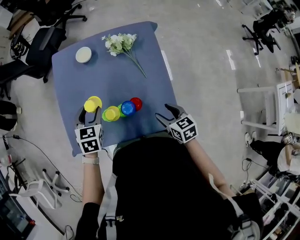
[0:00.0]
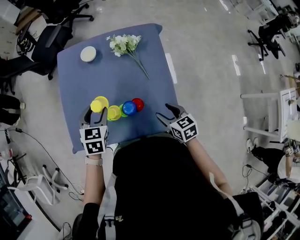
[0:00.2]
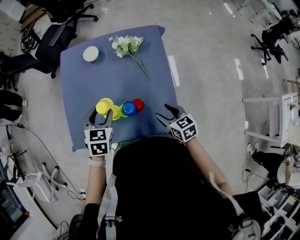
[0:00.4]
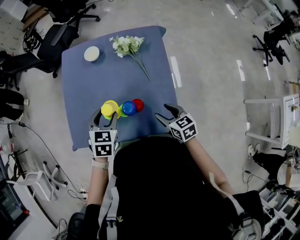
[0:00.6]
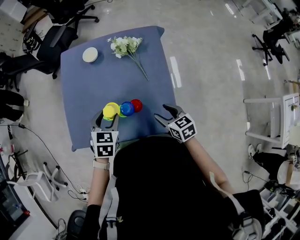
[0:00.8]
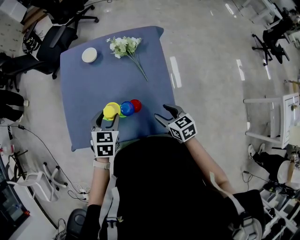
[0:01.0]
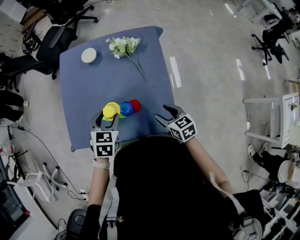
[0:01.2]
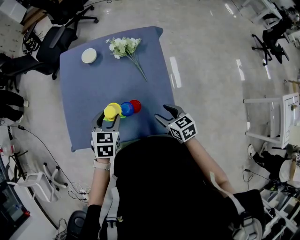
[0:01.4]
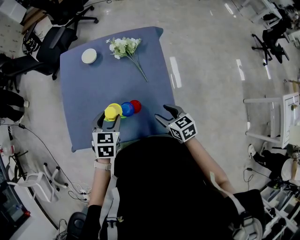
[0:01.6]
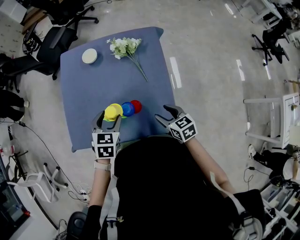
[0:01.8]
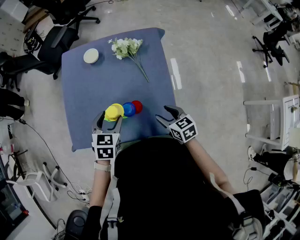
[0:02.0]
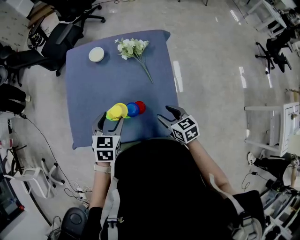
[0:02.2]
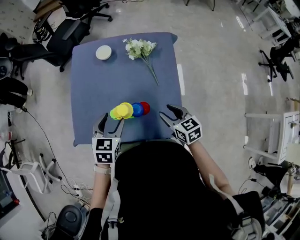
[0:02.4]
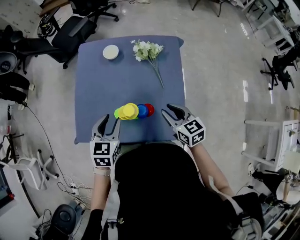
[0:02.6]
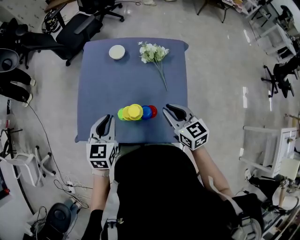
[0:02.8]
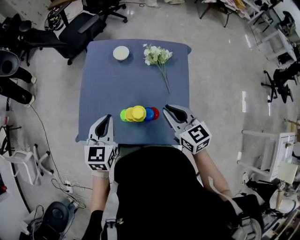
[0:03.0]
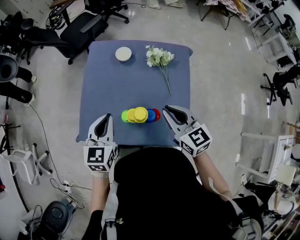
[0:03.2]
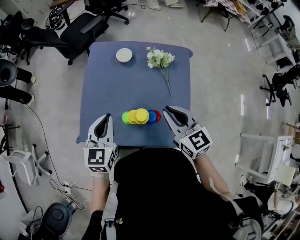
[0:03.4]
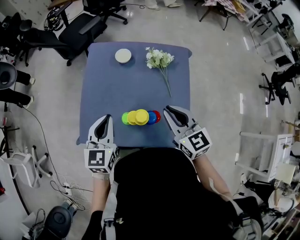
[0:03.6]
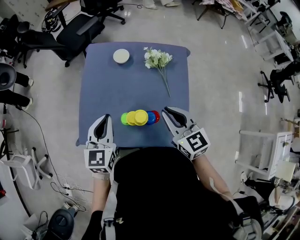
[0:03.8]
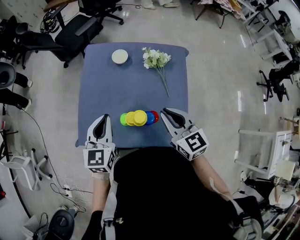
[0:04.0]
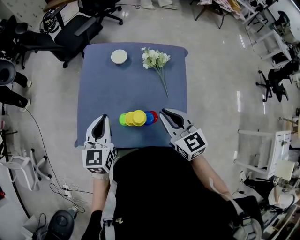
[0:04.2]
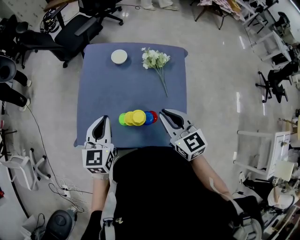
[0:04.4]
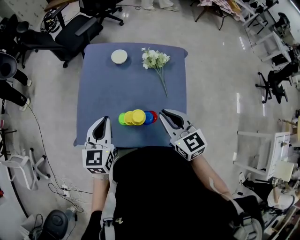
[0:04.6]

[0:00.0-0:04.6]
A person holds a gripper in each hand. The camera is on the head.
0.0 to 1.6 s: The left gripper goes approximately 10 cm backward and to the right.
1.6 to 3.0 s: The left gripper is displaced to the left and upward by some 15 cm, changes its angle by approximately 30 degrees, and closes its fingers, while the right gripper goes approximately 20 cm upward, to the left and forward, rotates about 20 degrees, and closes up.
3.0 to 4.6 s: The grippers make only small movements.

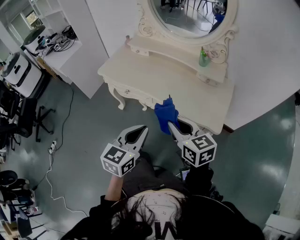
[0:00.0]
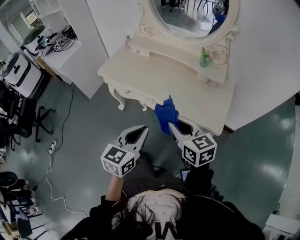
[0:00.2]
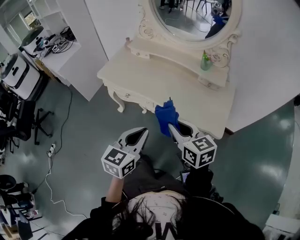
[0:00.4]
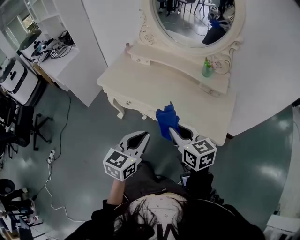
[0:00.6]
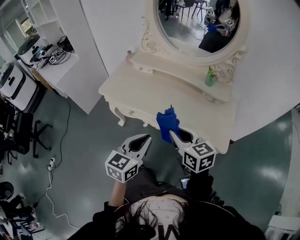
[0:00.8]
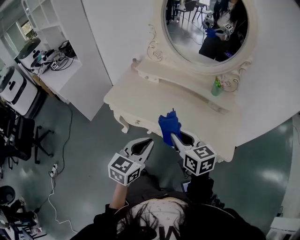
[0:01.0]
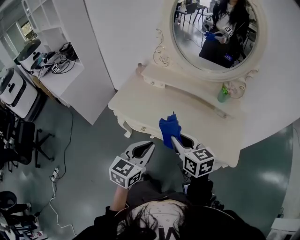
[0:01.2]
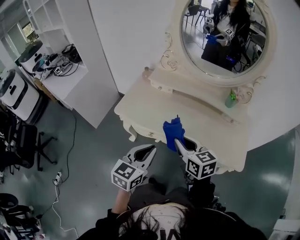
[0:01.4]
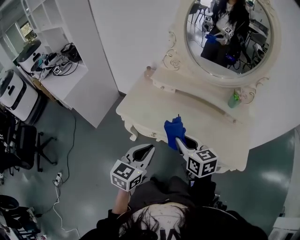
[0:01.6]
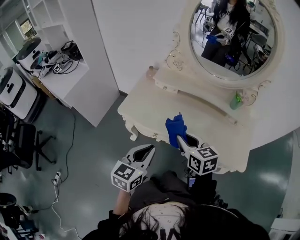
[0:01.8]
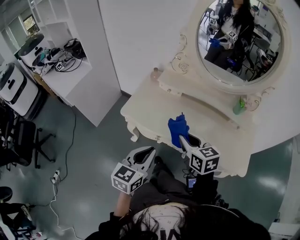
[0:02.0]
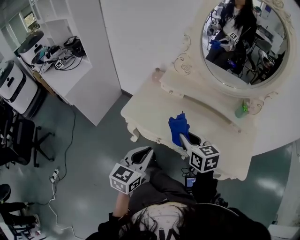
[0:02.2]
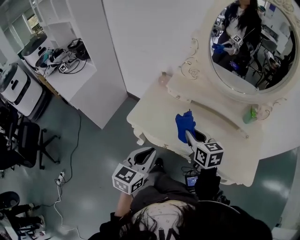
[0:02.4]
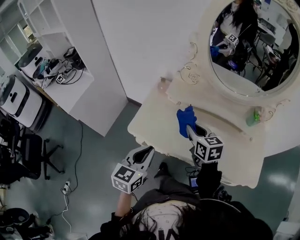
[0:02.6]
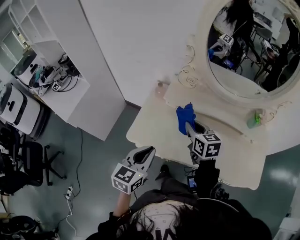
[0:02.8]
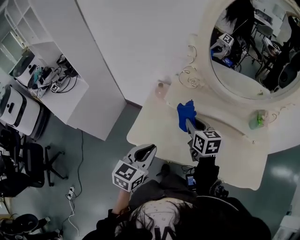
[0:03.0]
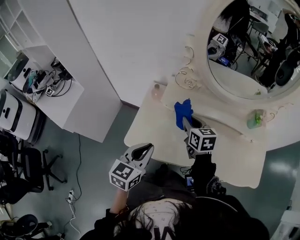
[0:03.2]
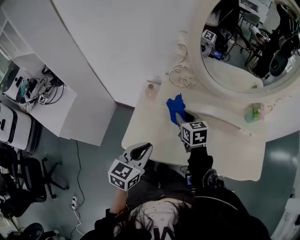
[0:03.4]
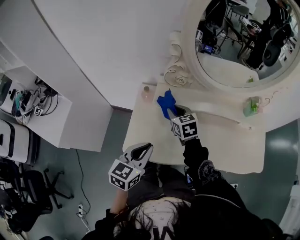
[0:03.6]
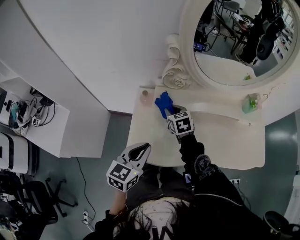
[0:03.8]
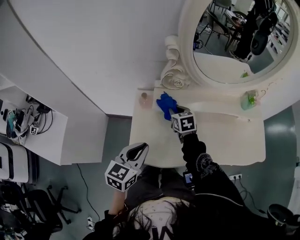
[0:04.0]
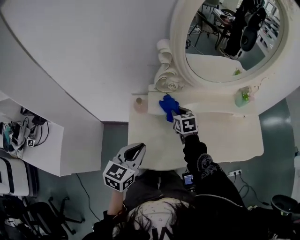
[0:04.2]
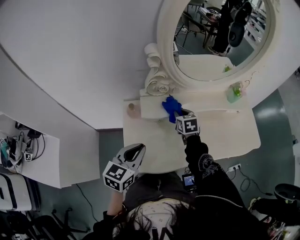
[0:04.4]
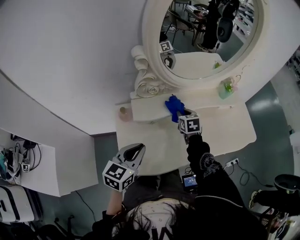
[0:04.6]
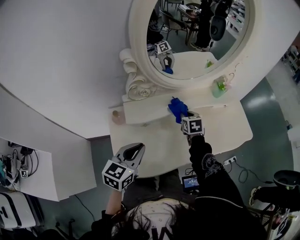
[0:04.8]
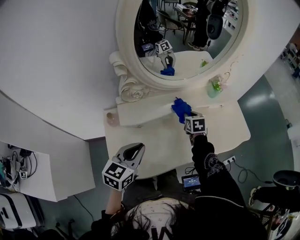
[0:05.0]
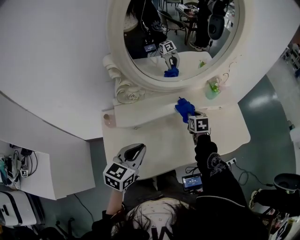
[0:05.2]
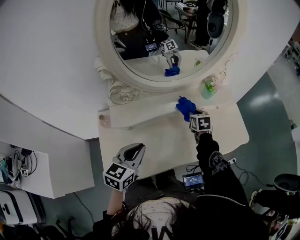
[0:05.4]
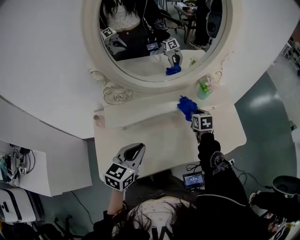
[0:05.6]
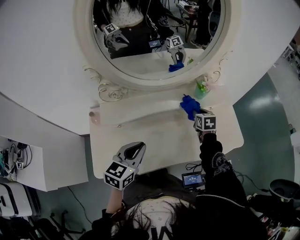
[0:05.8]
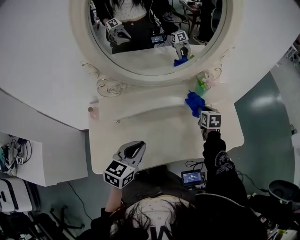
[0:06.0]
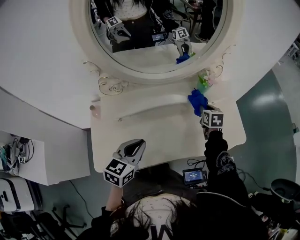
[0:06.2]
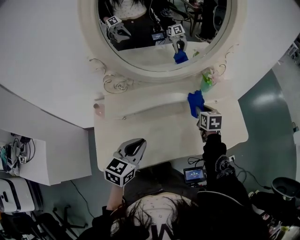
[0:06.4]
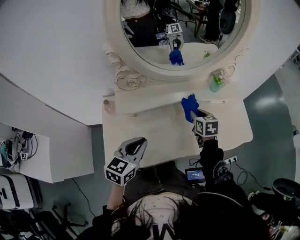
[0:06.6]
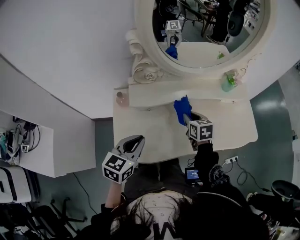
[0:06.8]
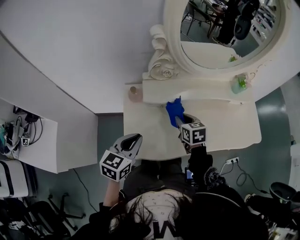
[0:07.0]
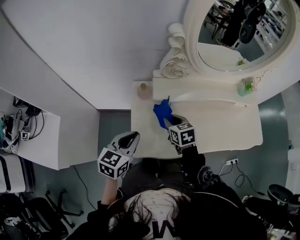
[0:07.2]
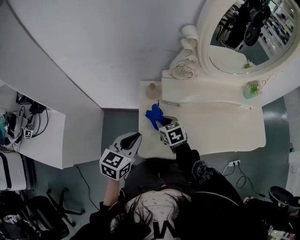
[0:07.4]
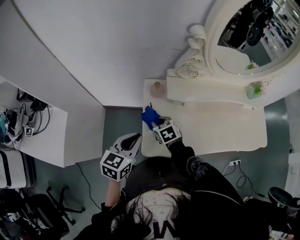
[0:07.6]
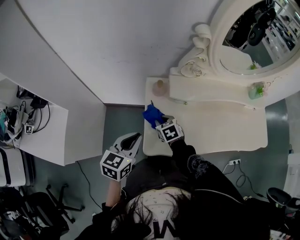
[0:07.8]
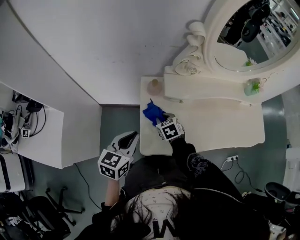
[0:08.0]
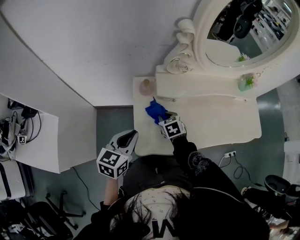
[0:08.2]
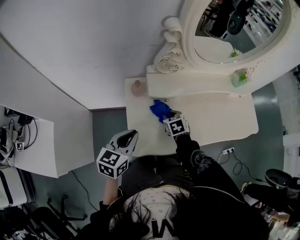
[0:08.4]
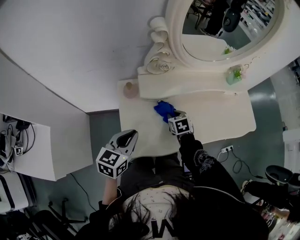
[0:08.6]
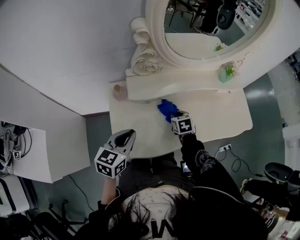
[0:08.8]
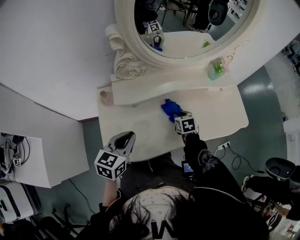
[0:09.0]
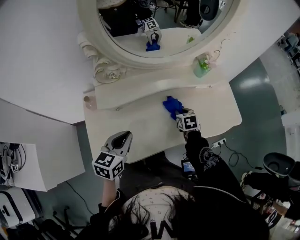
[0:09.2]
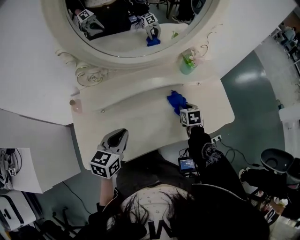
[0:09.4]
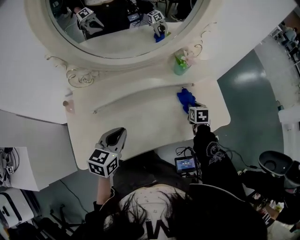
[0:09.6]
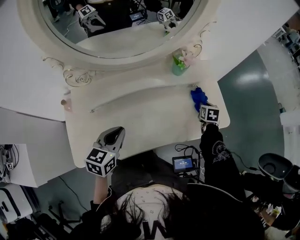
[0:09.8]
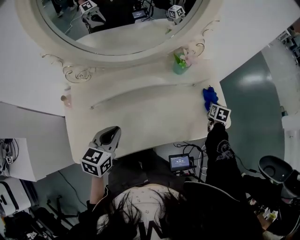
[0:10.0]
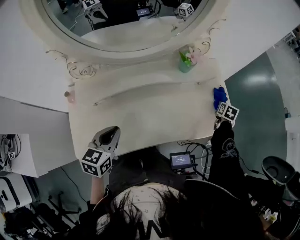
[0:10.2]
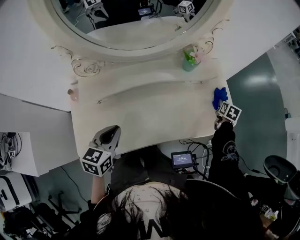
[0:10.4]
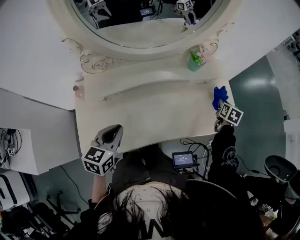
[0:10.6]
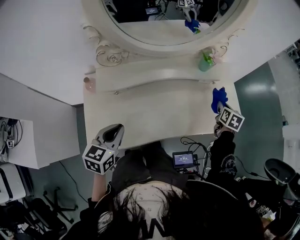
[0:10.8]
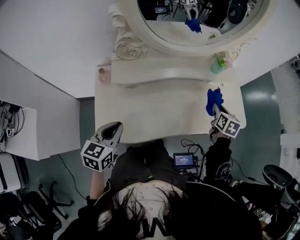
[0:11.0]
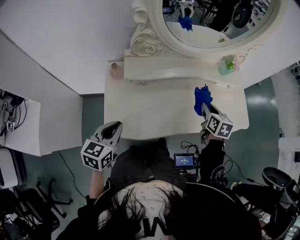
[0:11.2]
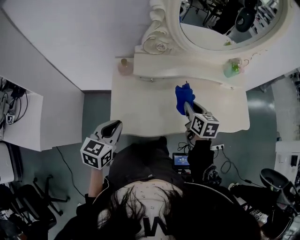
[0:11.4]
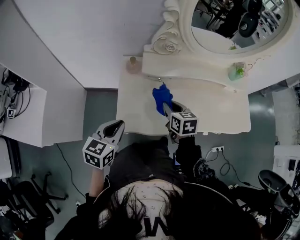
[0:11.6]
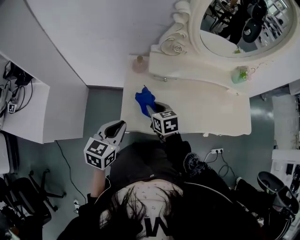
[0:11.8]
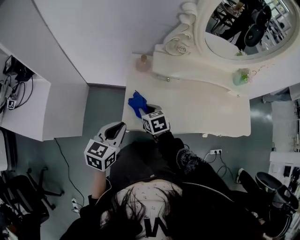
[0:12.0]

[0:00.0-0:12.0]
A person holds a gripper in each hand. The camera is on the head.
0.0 to 1.6 s: The right gripper travels forward and to the left by some 25 cm. Meanwhile the left gripper travels to the left and forward by some 25 cm.
1.6 to 3.0 s: The right gripper heads forward, covering some 25 cm, while the left gripper shifts roughly 20 cm forward and to the left.
3.0 to 4.4 s: The right gripper ends up some 15 cm from where it was, and rotates about 30 degrees, while the left gripper moves about 15 cm, and changes its angle by some 30 degrees.
4.4 to 6.0 s: The left gripper shifts some 25 cm to the right and forward; the right gripper goes about 35 cm to the right.
6.0 to 7.6 s: The left gripper moves roughly 35 cm, while the right gripper shifts by some 60 cm, and swivels about 40 degrees.
7.6 to 9.0 s: The right gripper travels to the right by roughly 35 cm, and turns by approximately 30 degrees, while the left gripper goes approximately 20 cm to the right.
9.0 to 10.4 s: The left gripper shifts about 15 cm to the right and forward, while the right gripper moves to the right and forward, approximately 50 cm, and changes its angle by approximately 40 degrees.
10.4 to 12.0 s: The right gripper travels upward and back again, some 10 cm each way, and swivels approximately 60 degrees. Meanwhile the left gripper changes place by about 35 cm.

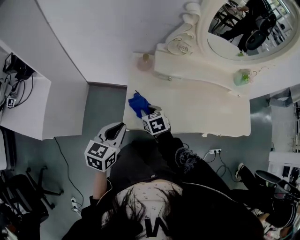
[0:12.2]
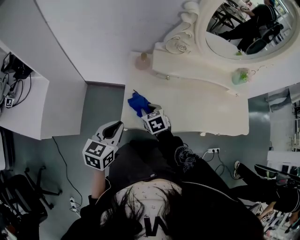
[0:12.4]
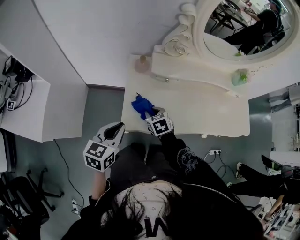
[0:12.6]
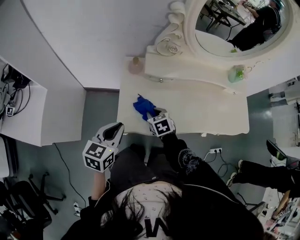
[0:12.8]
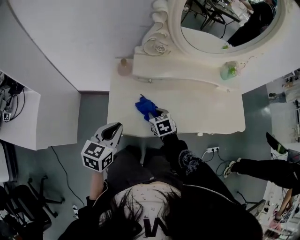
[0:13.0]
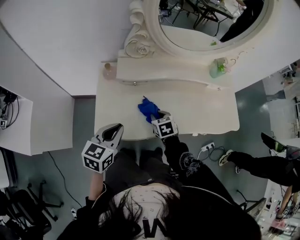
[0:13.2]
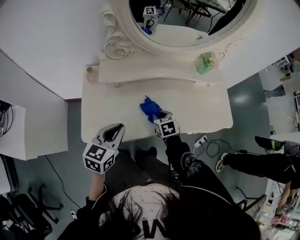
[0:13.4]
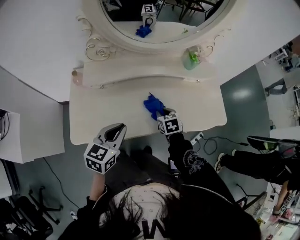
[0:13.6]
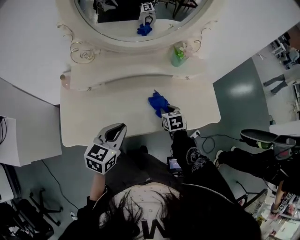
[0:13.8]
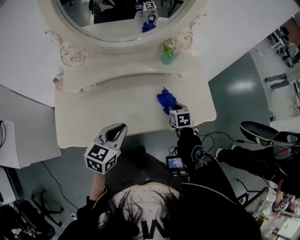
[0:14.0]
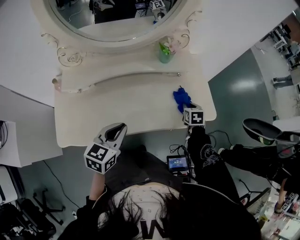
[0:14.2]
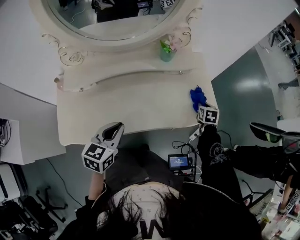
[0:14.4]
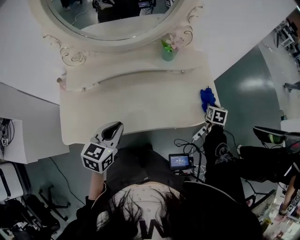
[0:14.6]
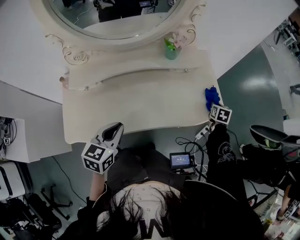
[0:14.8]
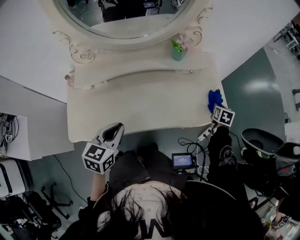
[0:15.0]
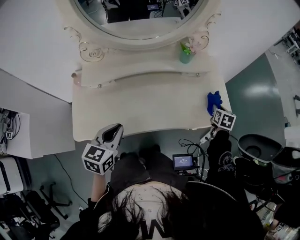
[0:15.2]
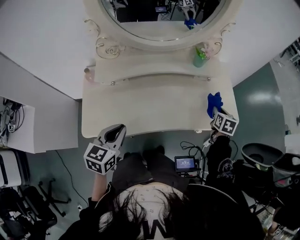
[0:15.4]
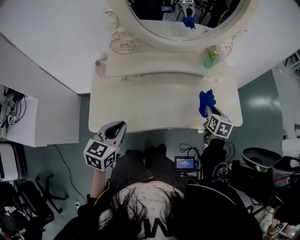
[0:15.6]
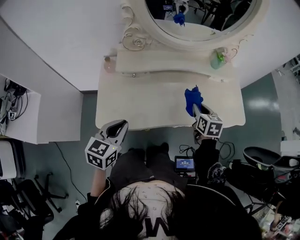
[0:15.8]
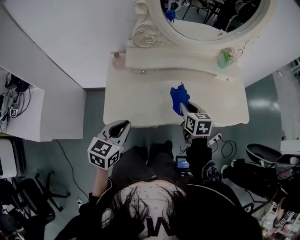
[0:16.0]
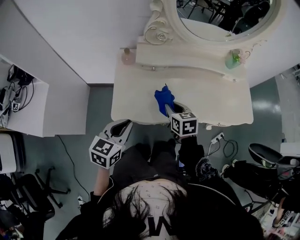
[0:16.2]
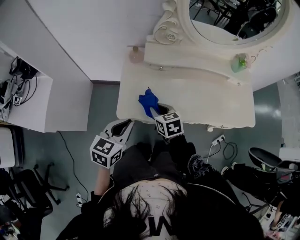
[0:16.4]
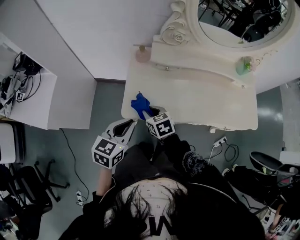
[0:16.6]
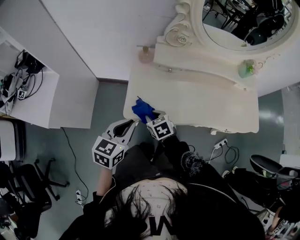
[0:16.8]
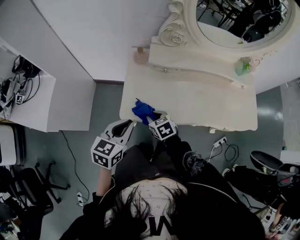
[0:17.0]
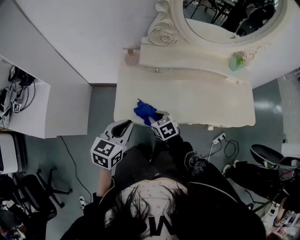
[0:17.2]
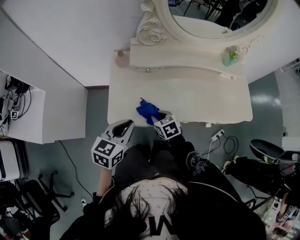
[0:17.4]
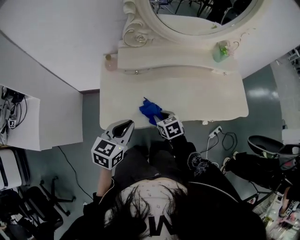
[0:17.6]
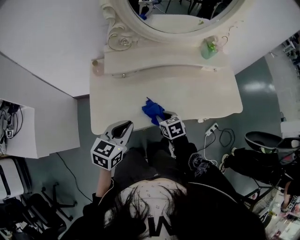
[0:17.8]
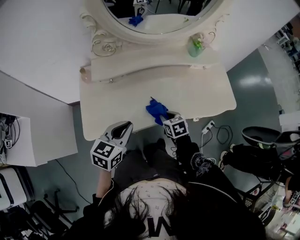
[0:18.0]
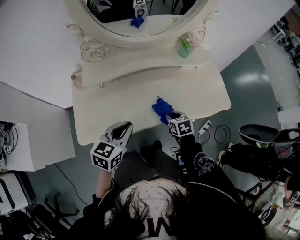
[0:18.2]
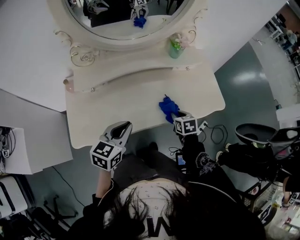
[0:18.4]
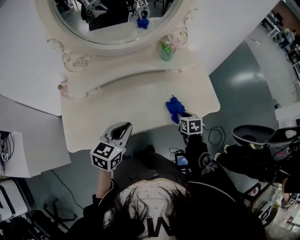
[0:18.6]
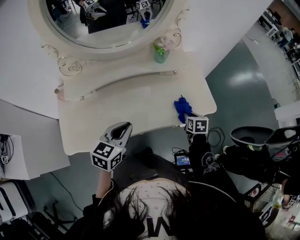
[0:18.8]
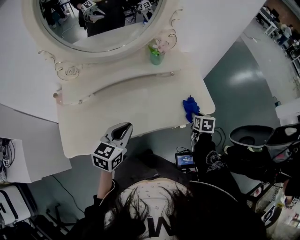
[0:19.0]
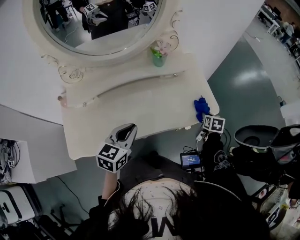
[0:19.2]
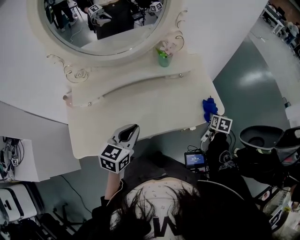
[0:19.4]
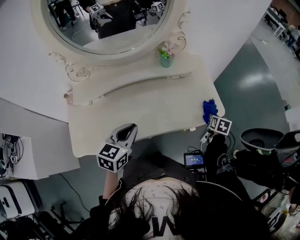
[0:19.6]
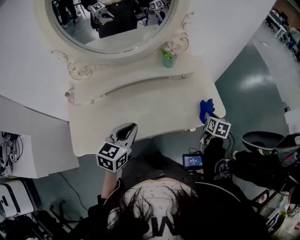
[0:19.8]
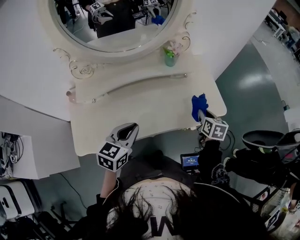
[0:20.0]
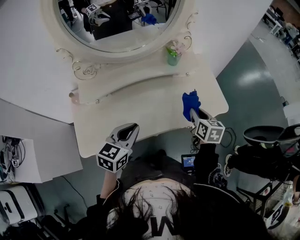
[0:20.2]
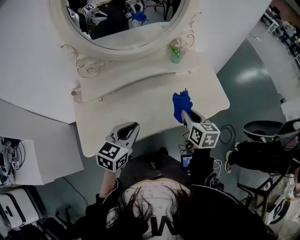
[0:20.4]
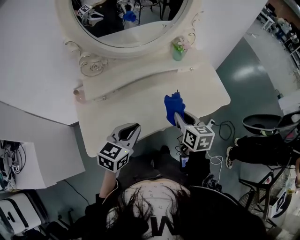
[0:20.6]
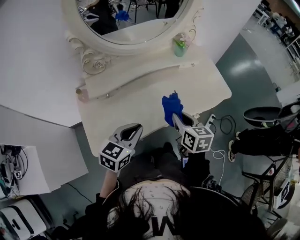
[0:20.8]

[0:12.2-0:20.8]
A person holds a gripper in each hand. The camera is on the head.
12.2 to 13.6 s: Both grippers move to the right, roughly 35 cm.
13.6 to 15.0 s: The right gripper travels to the right by roughly 40 cm, and changes its angle by some 40 degrees, while the left gripper heads to the right, covering about 5 cm.
15.0 to 16.6 s: The right gripper travels upward and back again, about 10 cm each way, and changes its angle by some 60 degrees; the left gripper moves about 30 cm.
16.6 to 18.0 s: The right gripper goes approximately 35 cm to the right, and swivels some 20 degrees. Meanwhile the left gripper moves to the right, about 20 cm.
18.0 to 19.4 s: The right gripper is displaced to the right by roughly 40 cm, and rotates approximately 40 degrees. The left gripper goes approximately 20 cm to the right and forward.
19.4 to 20.8 s: The left gripper is displaced to the left and backward by some 15 cm. The right gripper moves to the left, backward and upward, roughly 40 cm, and swivels approximately 30 degrees.
